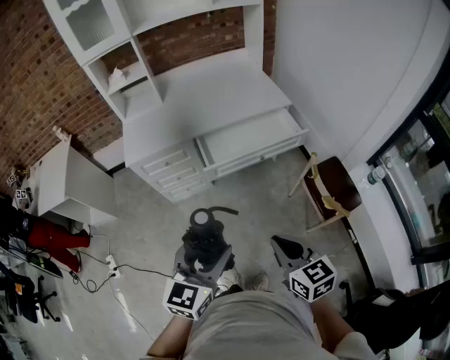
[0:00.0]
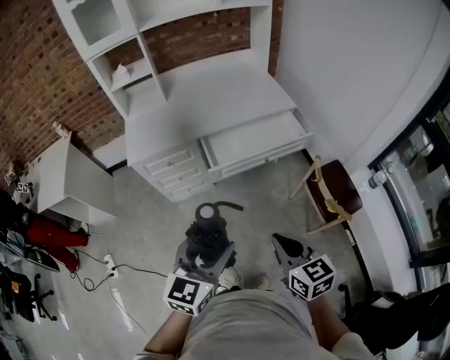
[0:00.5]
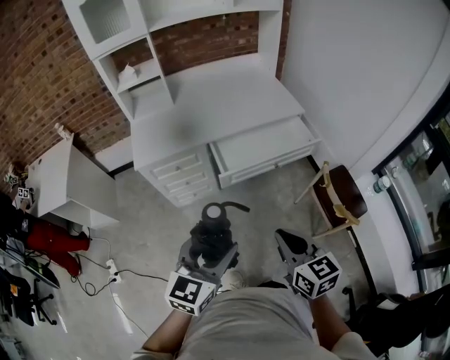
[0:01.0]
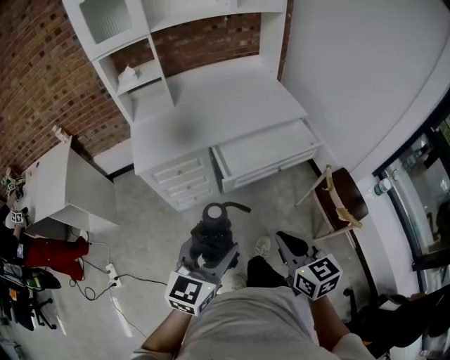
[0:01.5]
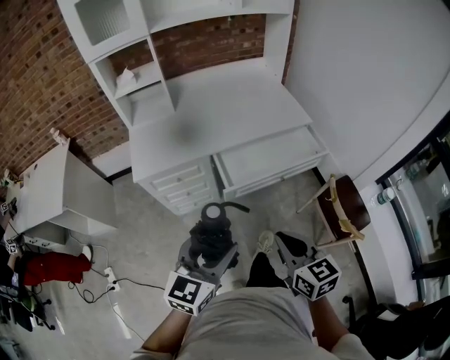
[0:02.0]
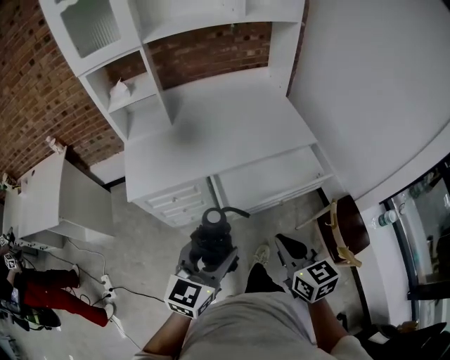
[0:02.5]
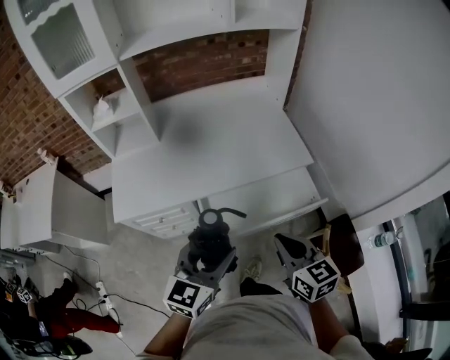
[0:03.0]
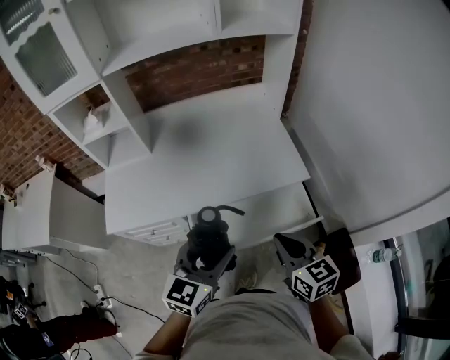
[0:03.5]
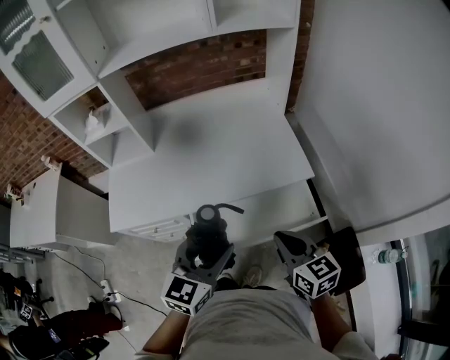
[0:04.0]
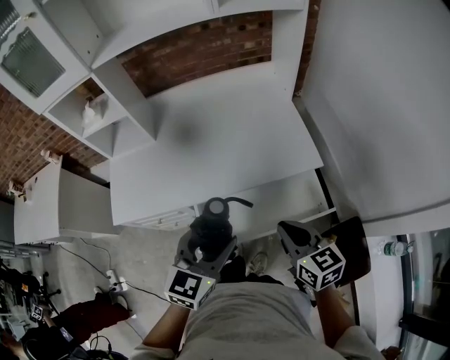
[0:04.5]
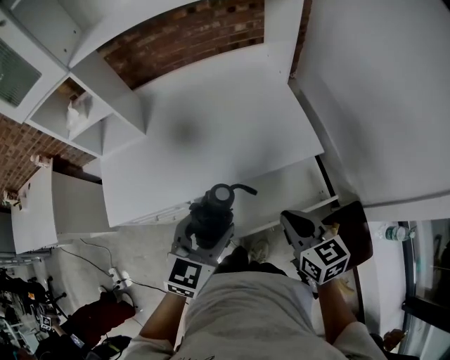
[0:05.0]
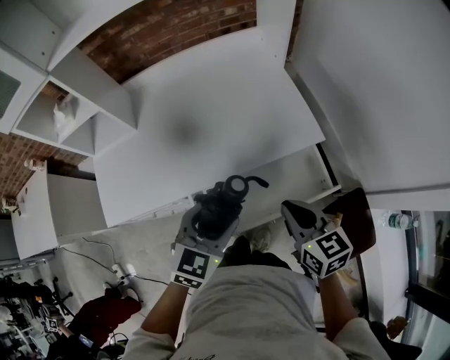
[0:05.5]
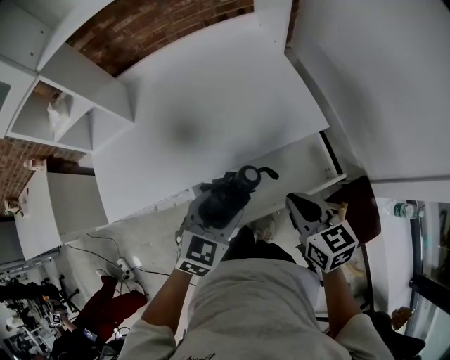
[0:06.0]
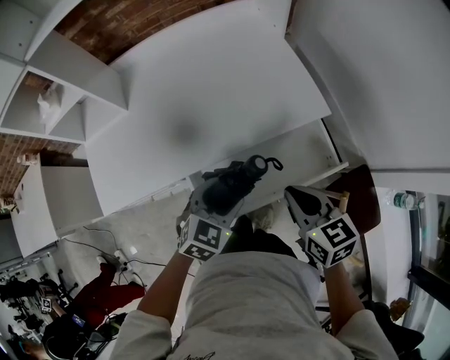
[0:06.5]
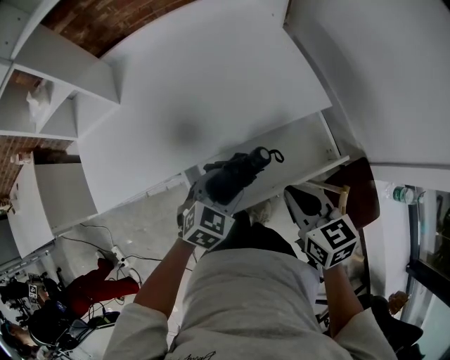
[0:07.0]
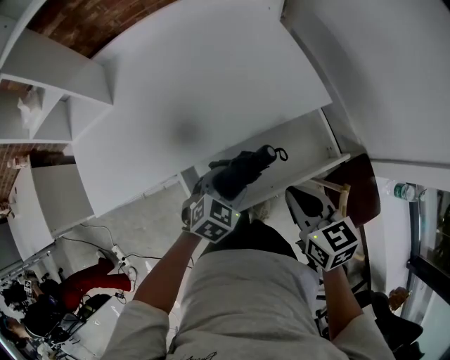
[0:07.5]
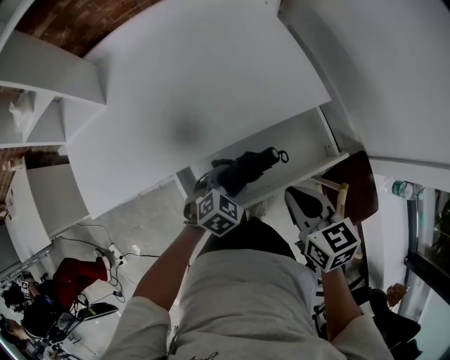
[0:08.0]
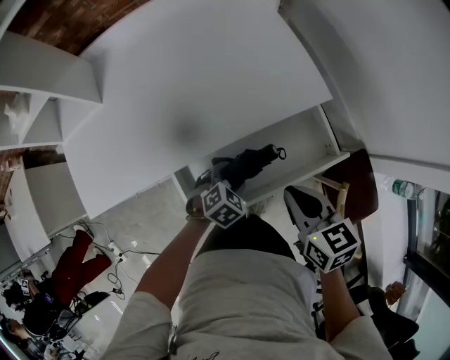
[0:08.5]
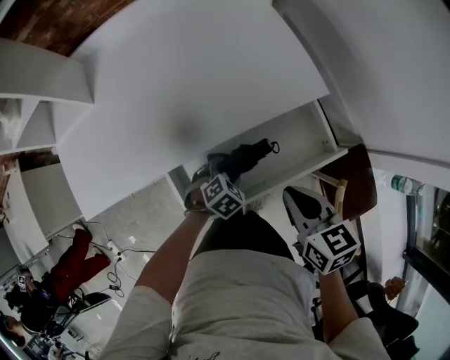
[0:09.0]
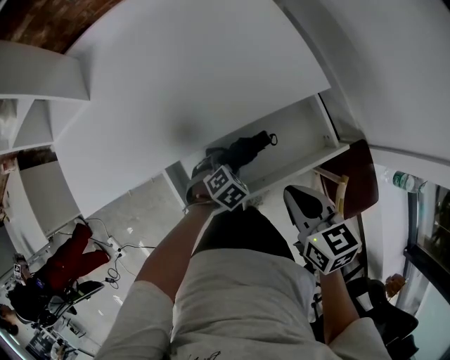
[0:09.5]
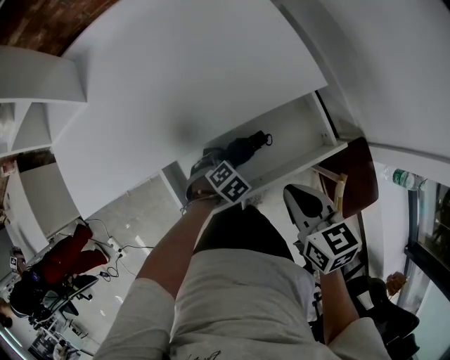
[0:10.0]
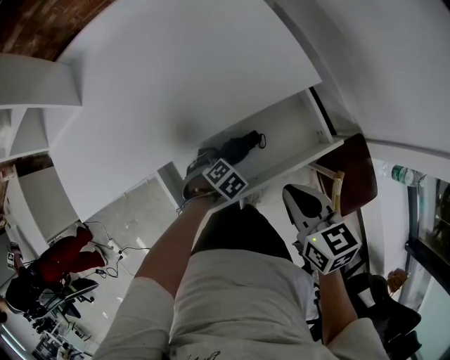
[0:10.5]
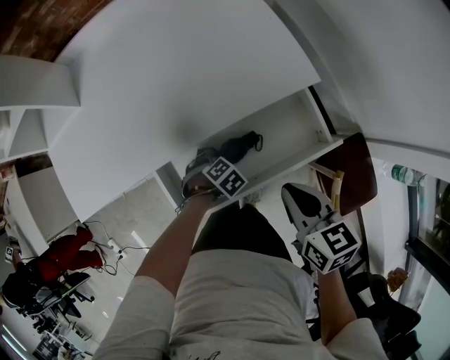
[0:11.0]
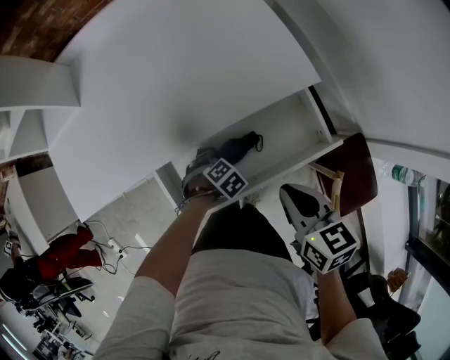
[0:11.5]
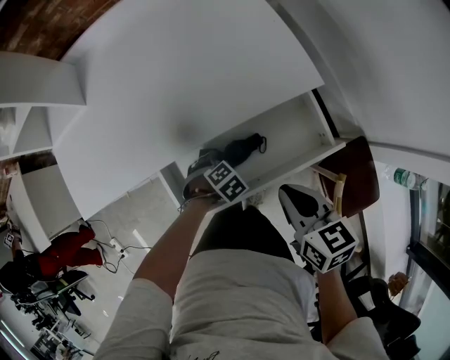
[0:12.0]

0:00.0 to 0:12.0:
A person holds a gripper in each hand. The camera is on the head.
0:00.0 to 0:02.0: Both grippers move forward and to the left, about 15 cm.
0:02.0 to 0:04.0: The grippers both shift forward and to the right by some 35 cm.
0:04.0 to 0:06.0: The left gripper is displaced downward and forward by about 15 cm, and turns by about 30 degrees; the right gripper heads forward and downward, covering about 10 cm.
0:06.0 to 0:08.0: The right gripper goes about 5 cm downward. The left gripper travels downward by roughly 20 cm, and rotates roughly 20 degrees.
0:08.0 to 0:10.0: The left gripper is displaced downward by roughly 10 cm, and turns by roughly 30 degrees.
0:10.0 to 0:12.0: The grippers make only small movements.

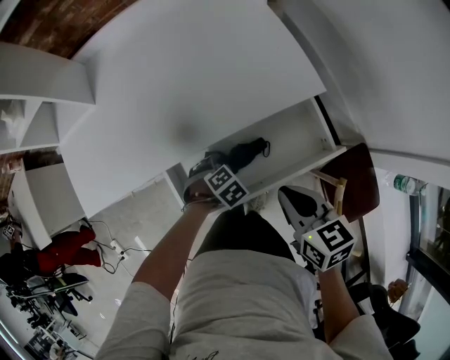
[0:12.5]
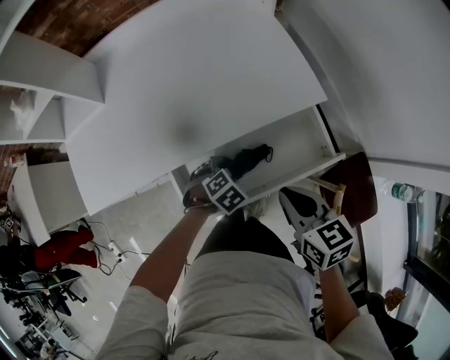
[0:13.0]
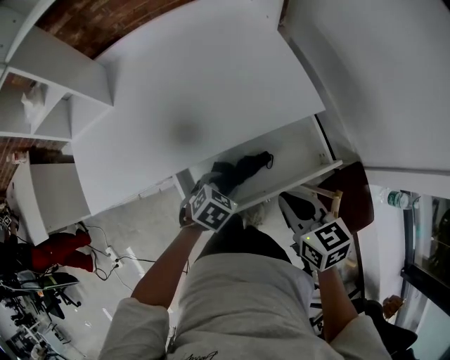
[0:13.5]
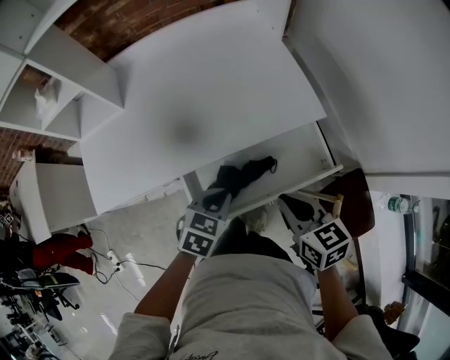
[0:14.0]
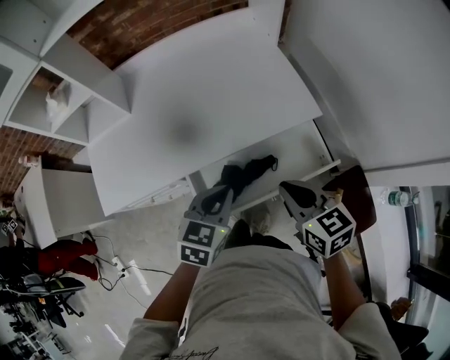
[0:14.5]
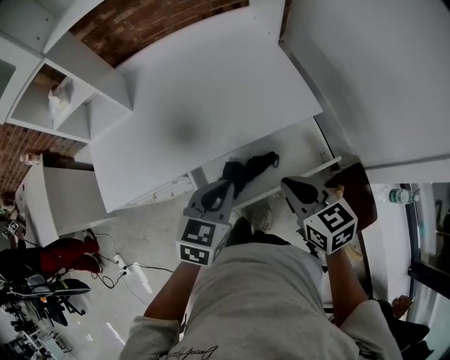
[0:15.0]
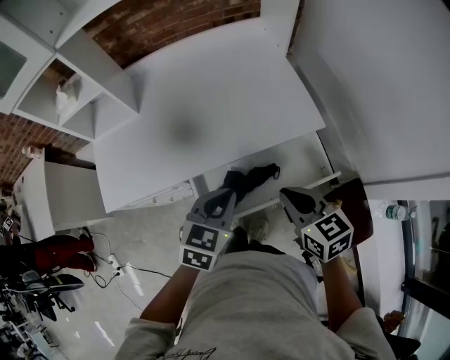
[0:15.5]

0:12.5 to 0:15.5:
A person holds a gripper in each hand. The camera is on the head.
0:12.5 to 0:14.0: The right gripper moves about 5 cm. Meanwhile the left gripper travels upward by approximately 20 cm, points its fingers approximately 30 degrees further upward, and closes.
0:14.0 to 0:15.5: The right gripper shifts roughly 5 cm upward. Meanwhile the left gripper goes some 10 cm upward.

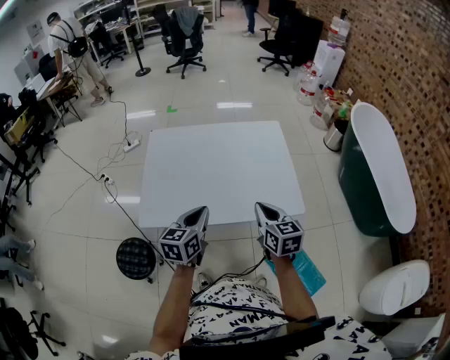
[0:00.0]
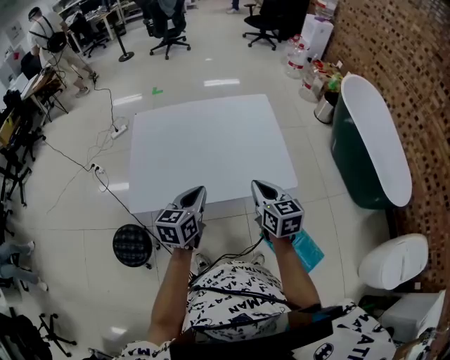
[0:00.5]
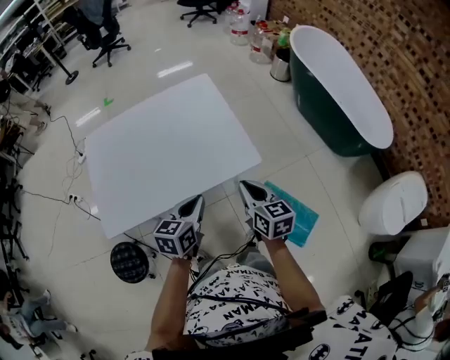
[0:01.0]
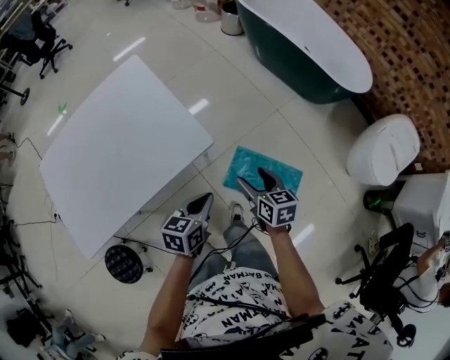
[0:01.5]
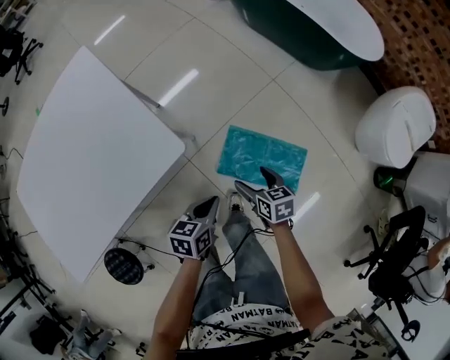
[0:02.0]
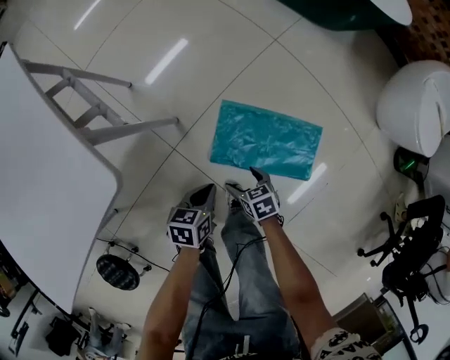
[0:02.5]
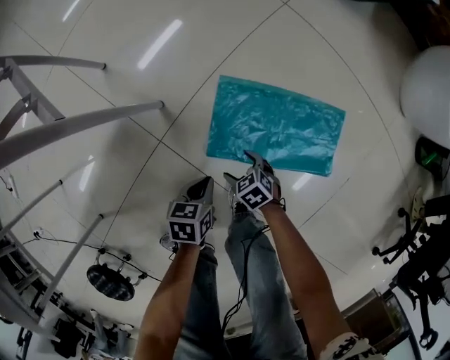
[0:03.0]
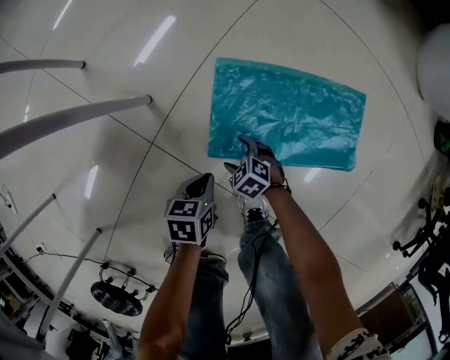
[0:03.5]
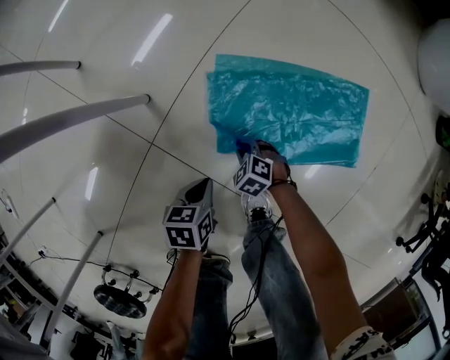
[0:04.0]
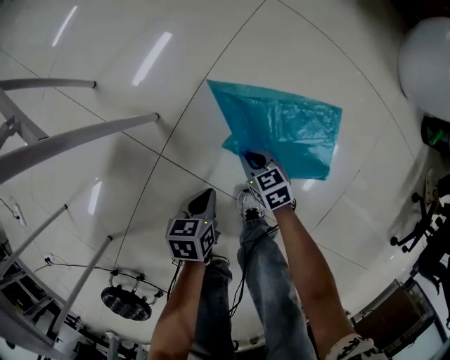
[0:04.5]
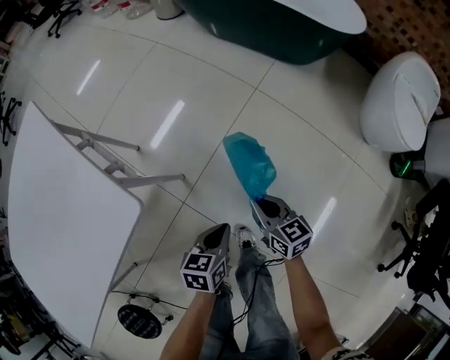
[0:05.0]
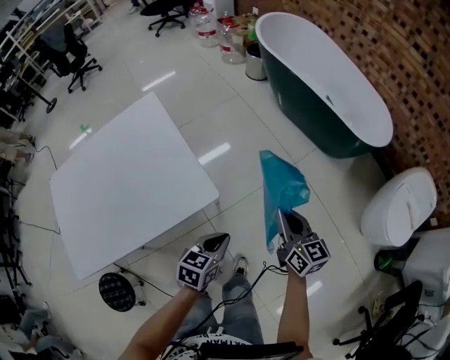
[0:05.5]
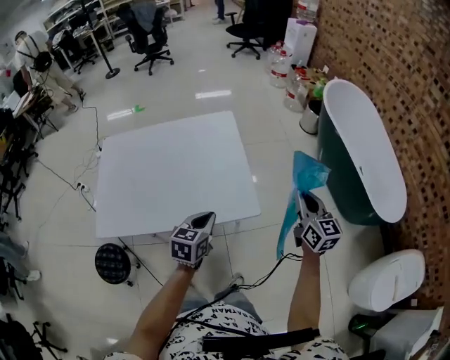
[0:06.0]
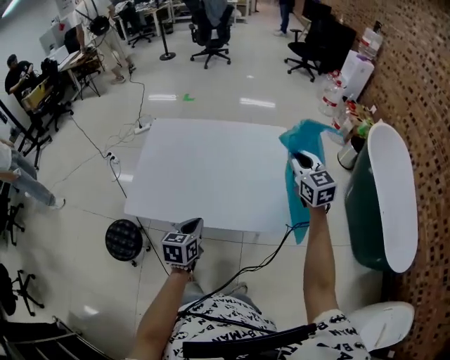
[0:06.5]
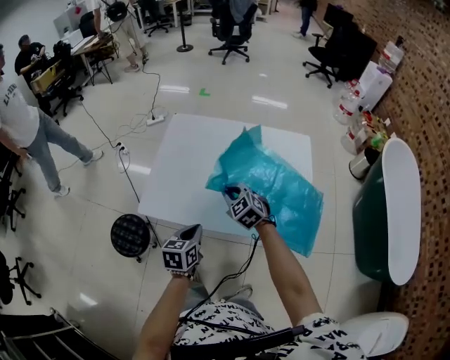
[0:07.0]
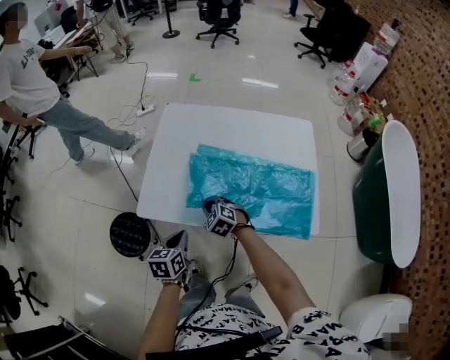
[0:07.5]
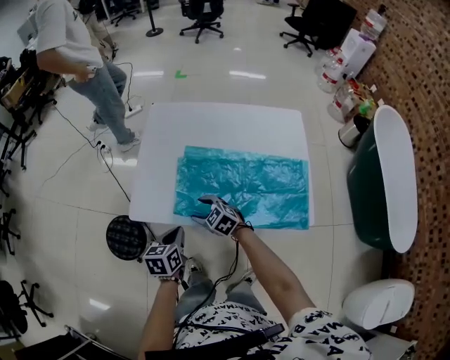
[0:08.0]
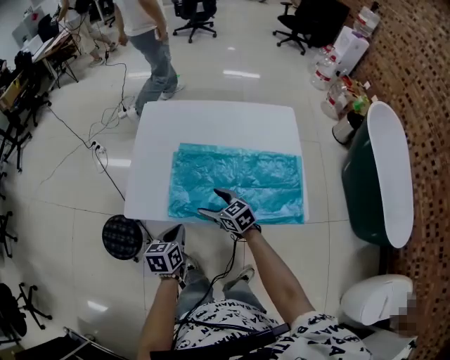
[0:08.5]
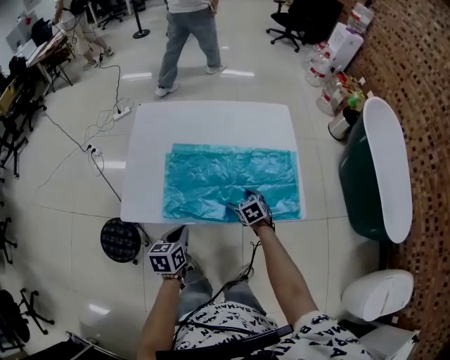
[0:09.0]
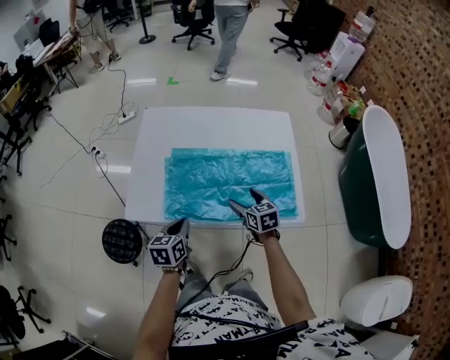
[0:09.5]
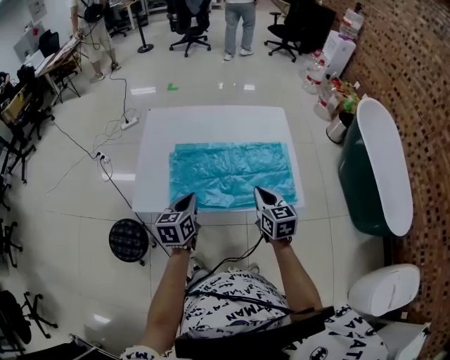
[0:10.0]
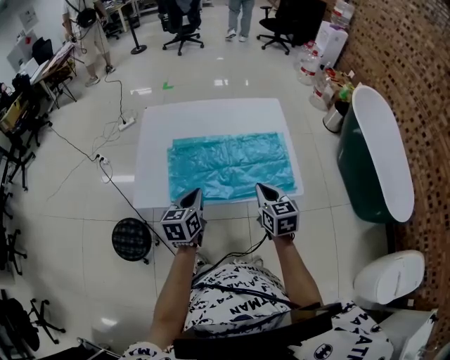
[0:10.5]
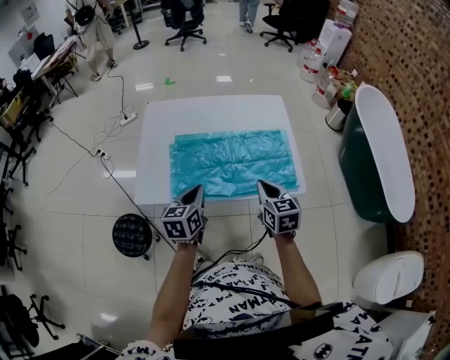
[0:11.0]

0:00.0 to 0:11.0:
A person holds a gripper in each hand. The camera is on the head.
0:00.0 to 0:02.0: The right gripper moves downward, roughly 35 cm, rotates roughly 40 degrees, and opens its fingers. Meanwhile the left gripper shifts by some 50 cm, and rotates roughly 50 degrees.
0:02.0 to 0:03.5: Both grippers travel together downward, roughly 50 cm. The right gripper rotates approximately 40 degrees. The left gripper rotates about 20 degrees.
0:03.5 to 0:05.5: The grippers both shift upward by roughly 70 cm. The right gripper angles its fingers upward, by roughly 50 degrees, and closes up, while the left gripper changes its angle by some 30 degrees.
0:05.5 to 0:07.5: The two grippers travel together, about 60 cm. The left gripper swivels approximately 60 degrees, while the right gripper tilts its fingers about 40 degrees downward.
0:07.5 to 0:09.0: The right gripper moves to the right, some 20 cm, rotates approximately 40 degrees, and opens up, while the left gripper travels to the right by roughly 5 cm.
0:09.0 to 0:11.0: The right gripper travels upward and backward by approximately 25 cm, changes its angle by roughly 30 degrees, and closes. The left gripper is displaced upward by approximately 10 cm.
